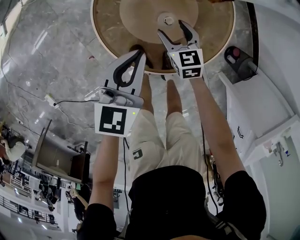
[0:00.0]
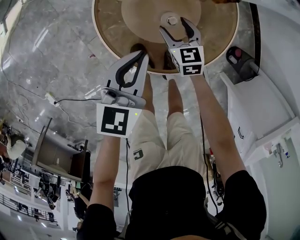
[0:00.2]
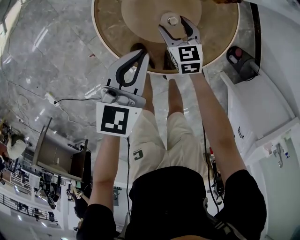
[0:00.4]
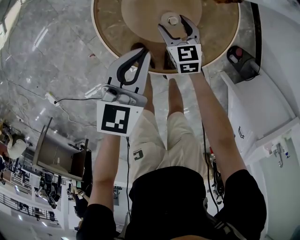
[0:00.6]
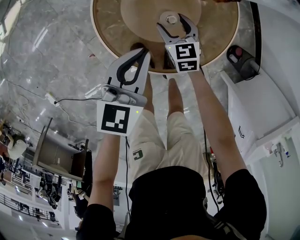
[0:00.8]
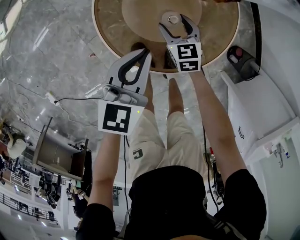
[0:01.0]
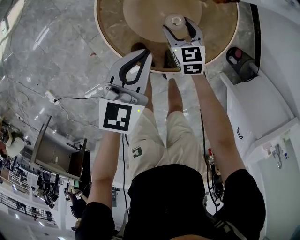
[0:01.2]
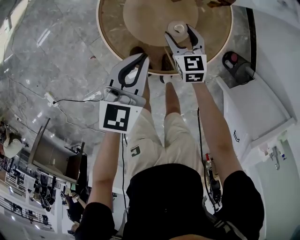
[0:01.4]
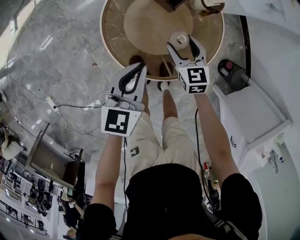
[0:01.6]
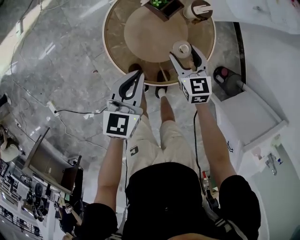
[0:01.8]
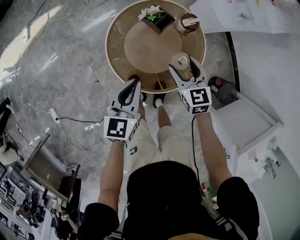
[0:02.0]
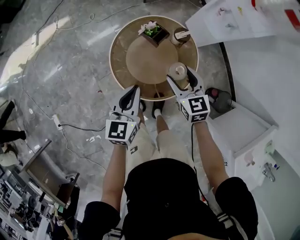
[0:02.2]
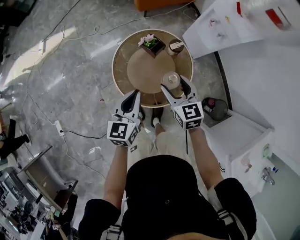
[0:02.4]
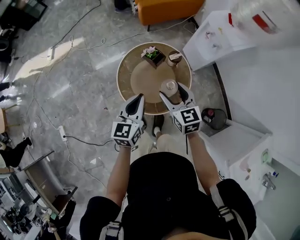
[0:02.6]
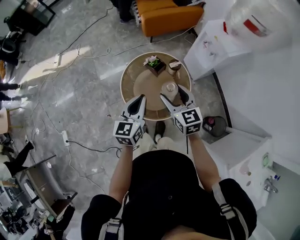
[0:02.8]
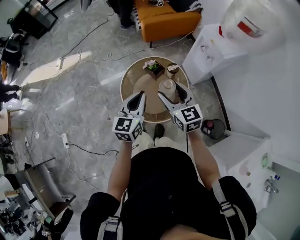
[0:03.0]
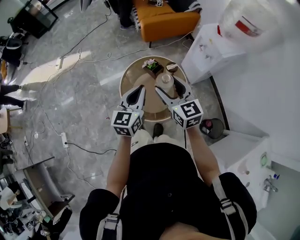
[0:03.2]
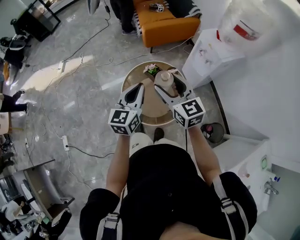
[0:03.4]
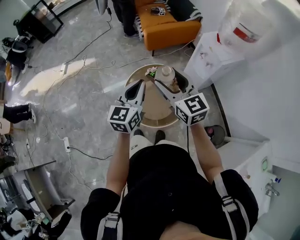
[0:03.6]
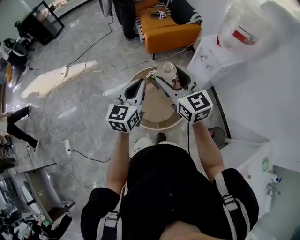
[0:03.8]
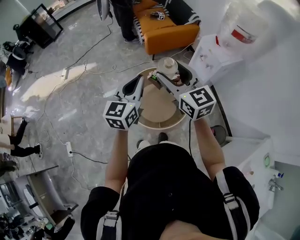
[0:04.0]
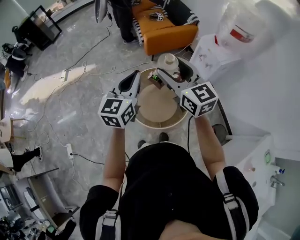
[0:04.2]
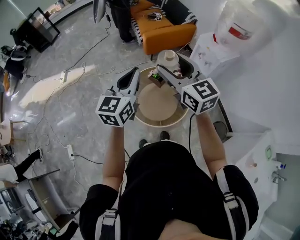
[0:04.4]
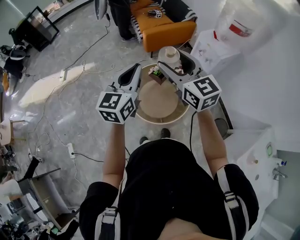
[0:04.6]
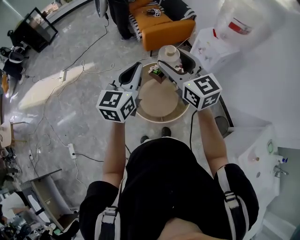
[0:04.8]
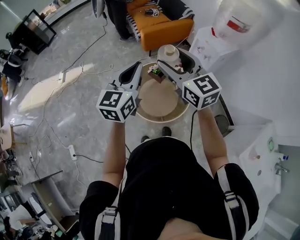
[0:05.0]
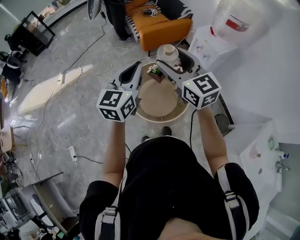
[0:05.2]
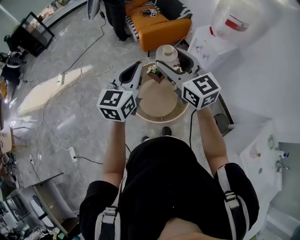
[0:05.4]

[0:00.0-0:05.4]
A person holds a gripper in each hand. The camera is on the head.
0.0 to 1.4 s: The grippers move only a little.
1.4 to 2.8 s: The right gripper moves upward, about 40 cm, and rotates some 20 degrees; the left gripper travels upward by some 30 cm, and turns by about 20 degrees.
2.8 to 4.0 s: The two grippers go roughly 20 cm upward.
4.0 to 5.4 s: The left gripper moves about 5 cm; the right gripper changes place by approximately 5 cm.

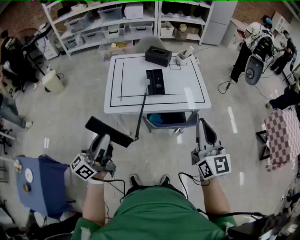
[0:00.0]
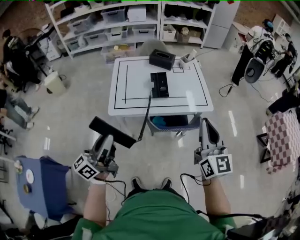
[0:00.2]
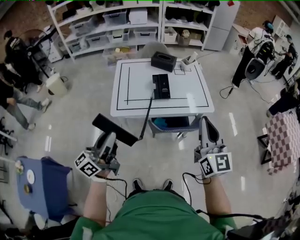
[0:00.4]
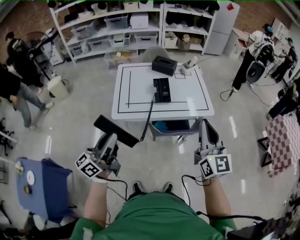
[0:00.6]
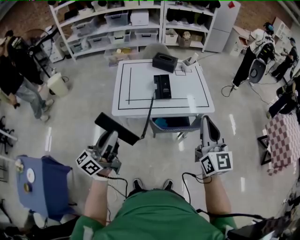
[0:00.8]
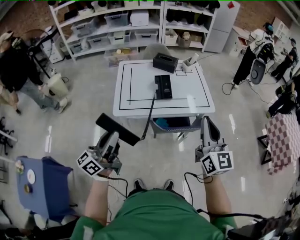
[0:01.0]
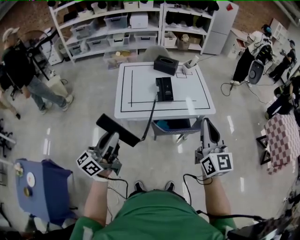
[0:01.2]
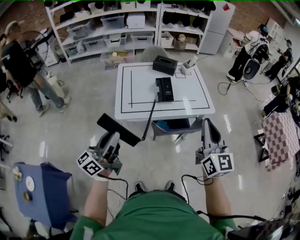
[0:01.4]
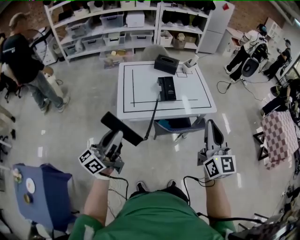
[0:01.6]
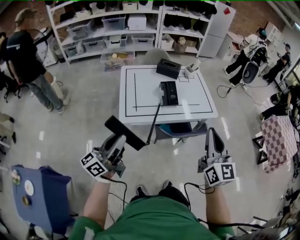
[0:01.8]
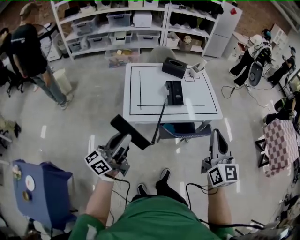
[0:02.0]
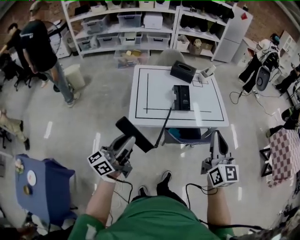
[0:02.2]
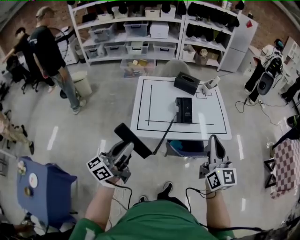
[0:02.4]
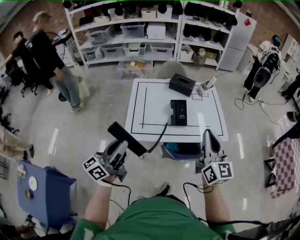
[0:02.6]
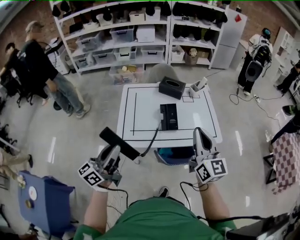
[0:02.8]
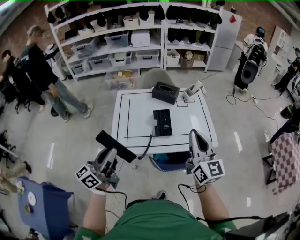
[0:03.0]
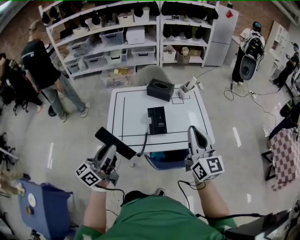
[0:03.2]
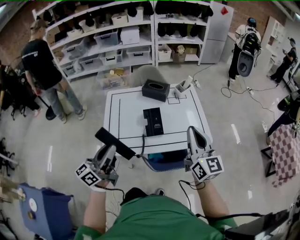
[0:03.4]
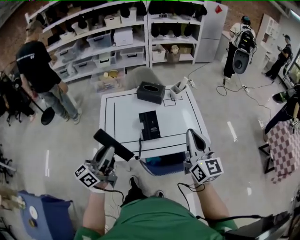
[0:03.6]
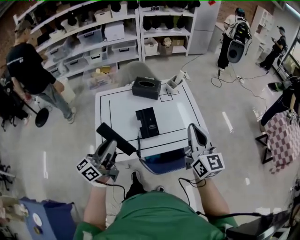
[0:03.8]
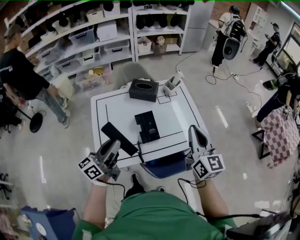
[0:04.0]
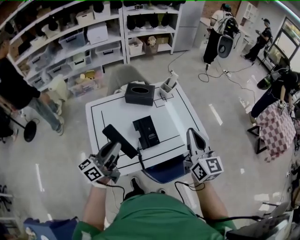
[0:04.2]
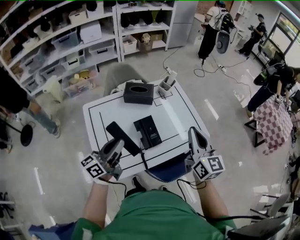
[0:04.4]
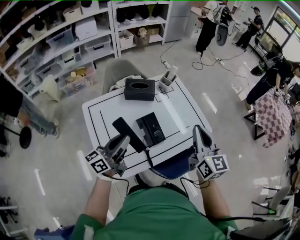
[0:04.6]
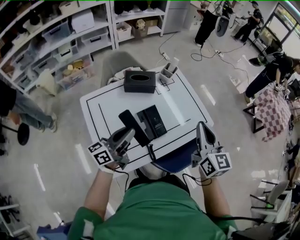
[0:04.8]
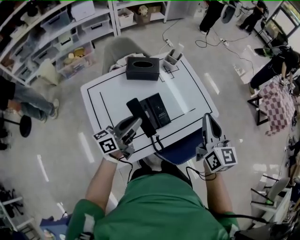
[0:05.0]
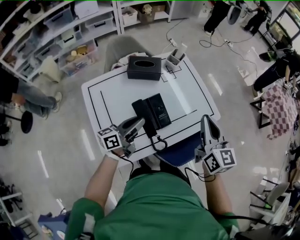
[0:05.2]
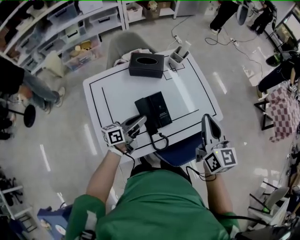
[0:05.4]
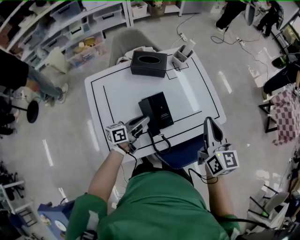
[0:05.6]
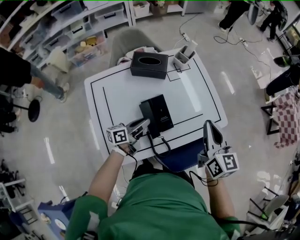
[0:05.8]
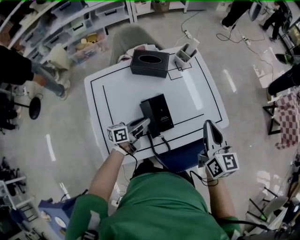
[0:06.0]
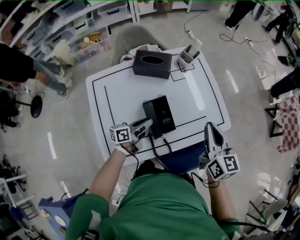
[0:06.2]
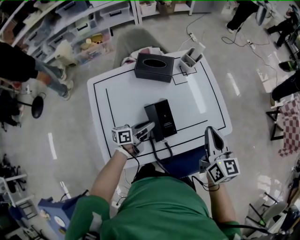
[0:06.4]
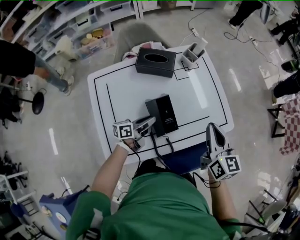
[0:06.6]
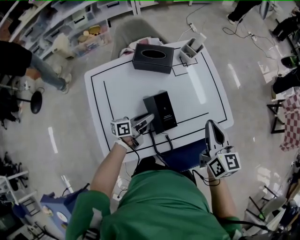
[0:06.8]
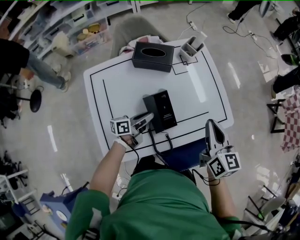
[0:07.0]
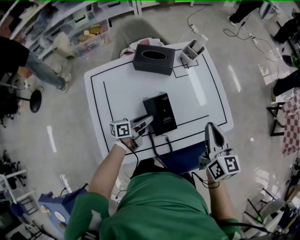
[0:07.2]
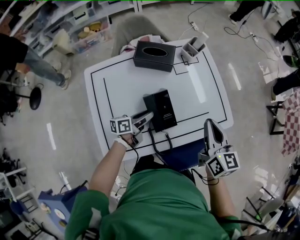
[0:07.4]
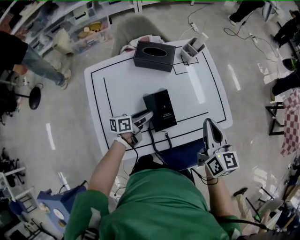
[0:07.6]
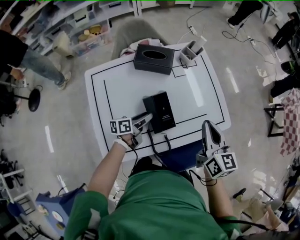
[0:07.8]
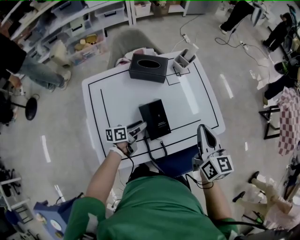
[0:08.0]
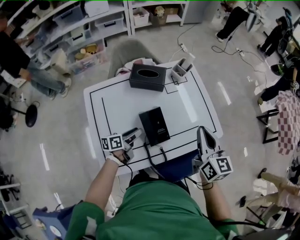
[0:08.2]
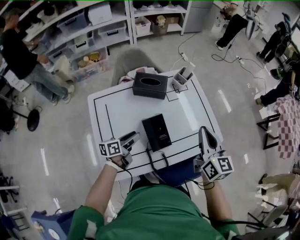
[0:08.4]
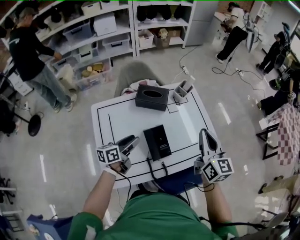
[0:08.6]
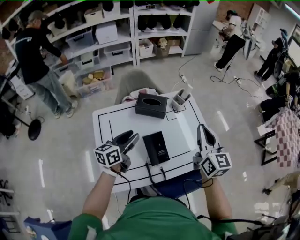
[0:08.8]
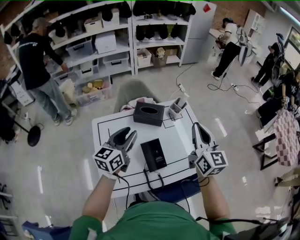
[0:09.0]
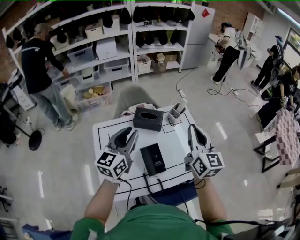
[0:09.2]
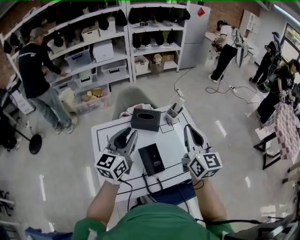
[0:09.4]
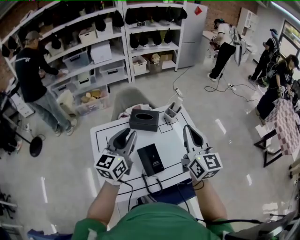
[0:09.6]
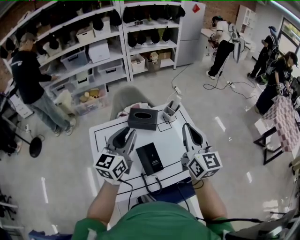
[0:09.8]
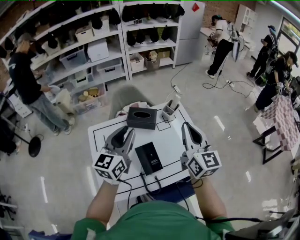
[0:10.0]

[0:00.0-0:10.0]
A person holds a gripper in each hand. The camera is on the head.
0.0 to 1.4 s: The grippers both shift to the left by about 5 cm.
1.4 to 2.8 s: Both grippers travel together forward, approximately 15 cm.
2.8 to 4.2 s: The left gripper moves forward, about 25 cm, and swivels roughly 20 degrees. The right gripper shifts approximately 15 cm forward.
4.2 to 5.8 s: The right gripper goes about 10 cm downward and forward. The left gripper heads downward and forward, covering roughly 25 cm, and rotates roughly 30 degrees.
5.8 to 7.2 s: The right gripper ends up approximately 5 cm from where it was. Meanwhile the left gripper changes place by approximately 5 cm.
7.2 to 8.6 s: The right gripper travels upward by roughly 10 cm. The left gripper is displaced upward and to the left by about 15 cm, and opens.
8.6 to 10.0 s: The left gripper heads upward, covering some 25 cm, and changes its angle by roughly 40 degrees. Meanwhile the right gripper shifts approximately 10 cm upward.

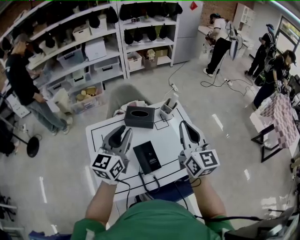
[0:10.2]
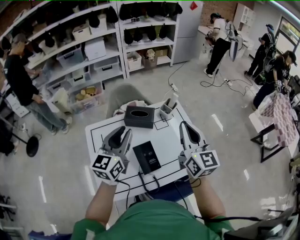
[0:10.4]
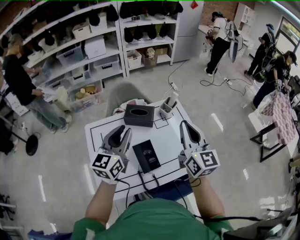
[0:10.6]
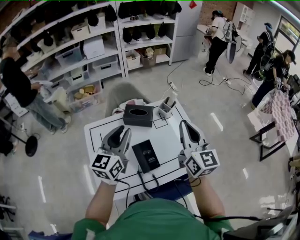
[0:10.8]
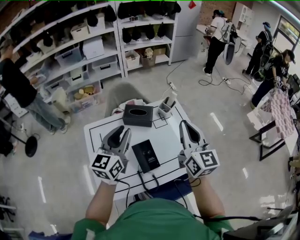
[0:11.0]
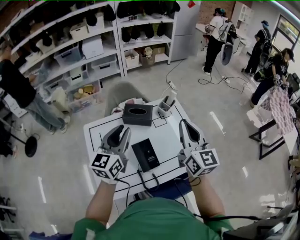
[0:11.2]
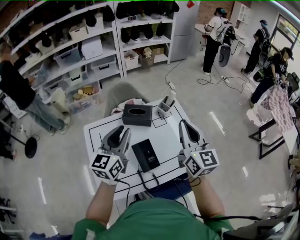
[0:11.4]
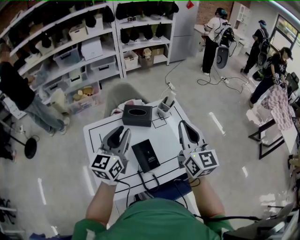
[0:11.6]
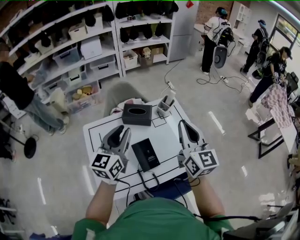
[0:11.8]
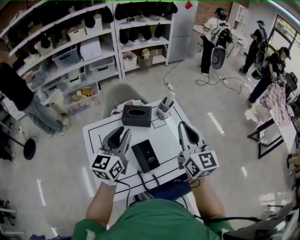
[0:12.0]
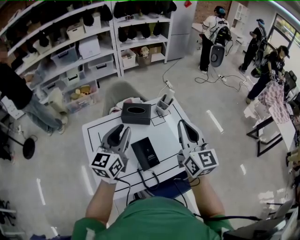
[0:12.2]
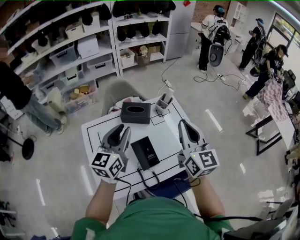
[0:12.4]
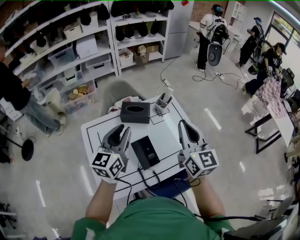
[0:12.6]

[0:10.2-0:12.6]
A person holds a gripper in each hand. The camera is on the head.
10.2 to 11.4 s: Both grippers stay put.
11.4 to 12.6 s: There are only small adjustments of the grippers.

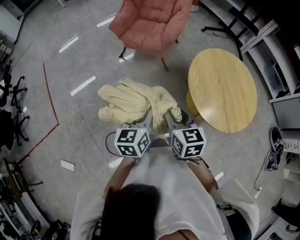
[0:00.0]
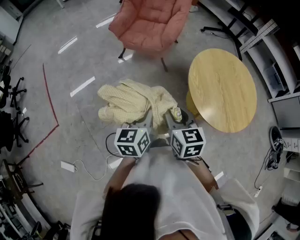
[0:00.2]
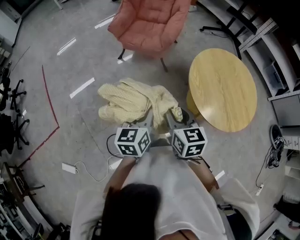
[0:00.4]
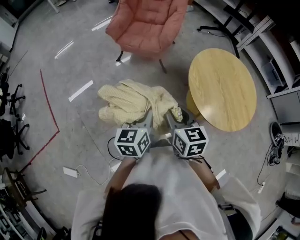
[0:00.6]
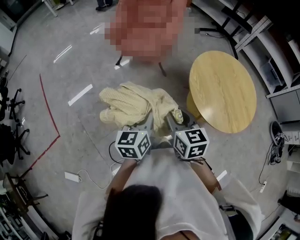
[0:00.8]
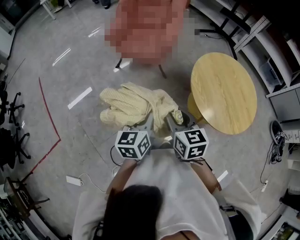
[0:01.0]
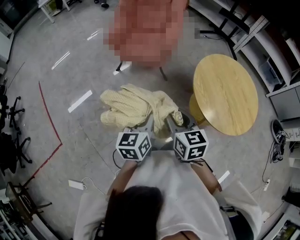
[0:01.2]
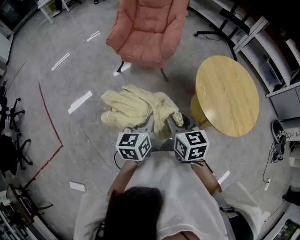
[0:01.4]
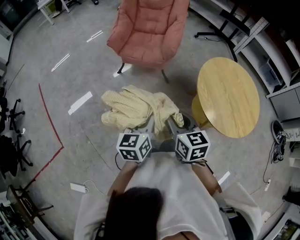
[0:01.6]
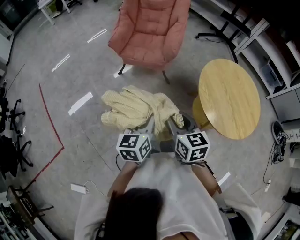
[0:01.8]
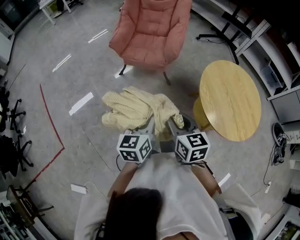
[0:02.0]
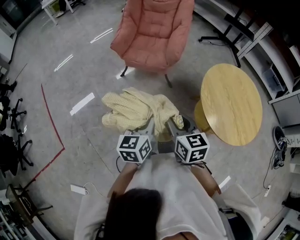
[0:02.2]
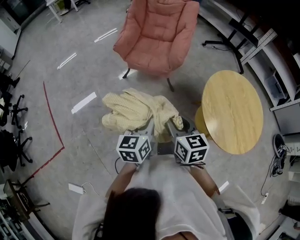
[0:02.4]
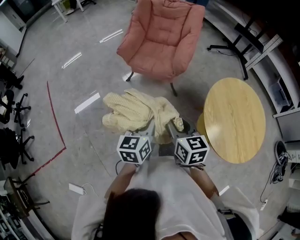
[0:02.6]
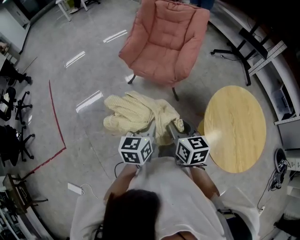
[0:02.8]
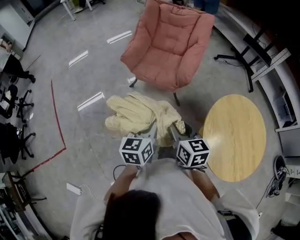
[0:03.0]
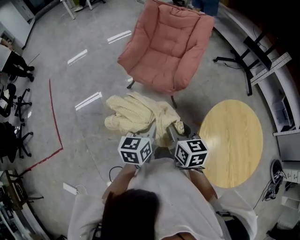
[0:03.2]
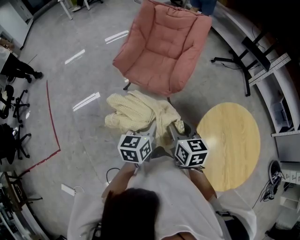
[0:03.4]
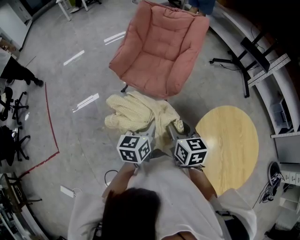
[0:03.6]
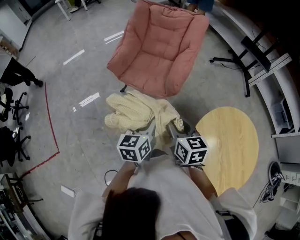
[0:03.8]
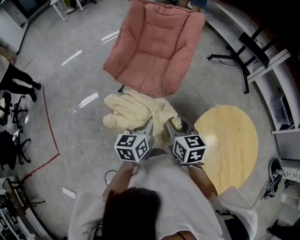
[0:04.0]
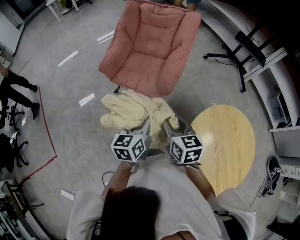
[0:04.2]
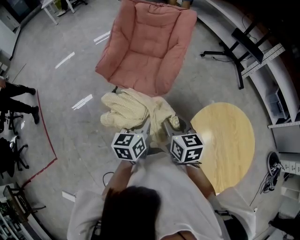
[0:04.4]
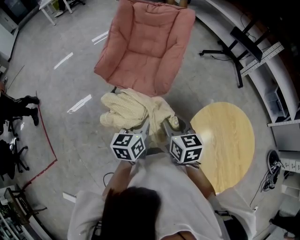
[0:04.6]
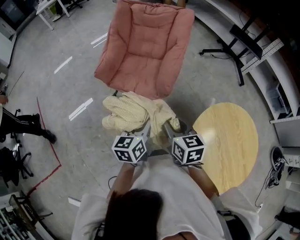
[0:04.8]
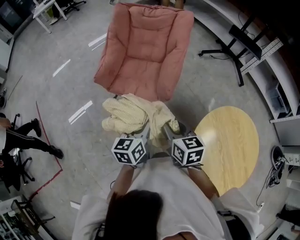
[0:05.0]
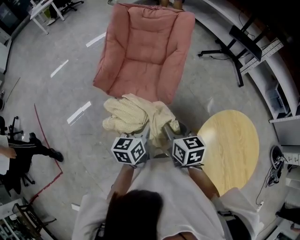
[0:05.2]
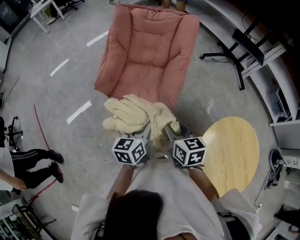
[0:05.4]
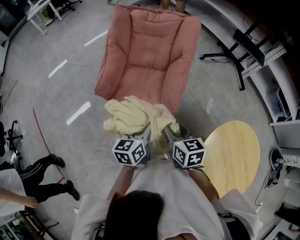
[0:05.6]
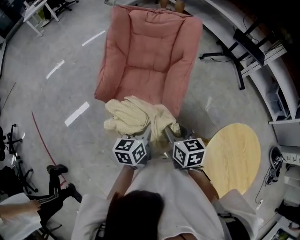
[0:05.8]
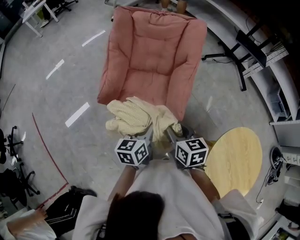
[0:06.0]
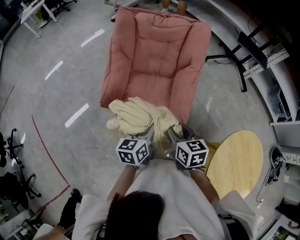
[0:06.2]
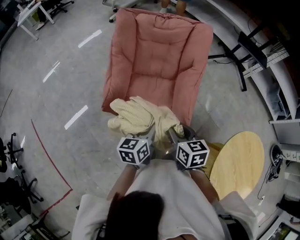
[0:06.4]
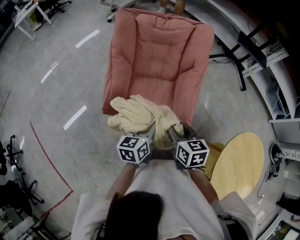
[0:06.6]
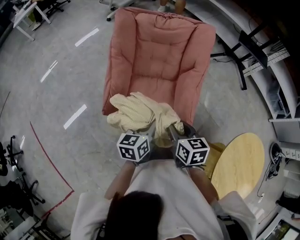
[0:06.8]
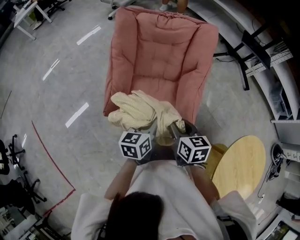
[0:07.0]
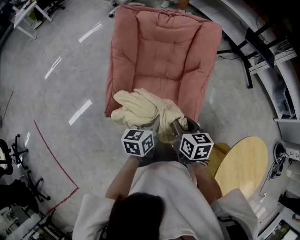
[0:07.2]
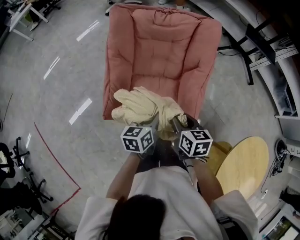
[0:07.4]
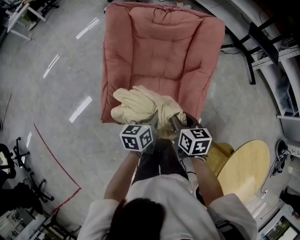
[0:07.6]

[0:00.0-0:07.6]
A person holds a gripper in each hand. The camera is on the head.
0.0 to 1.6 s: Both grippers travel together to the left and forward, roughly 10 cm.
1.6 to 3.0 s: Both grippers move forward, roughly 15 cm.
3.0 to 4.6 s: The grippers both shift forward and to the right by some 20 cm.
4.6 to 6.0 s: The two grippers go roughly 20 cm forward and to the left.
6.0 to 7.6 s: The left gripper goes about 20 cm forward, while the right gripper moves forward and downward, about 20 cm.
